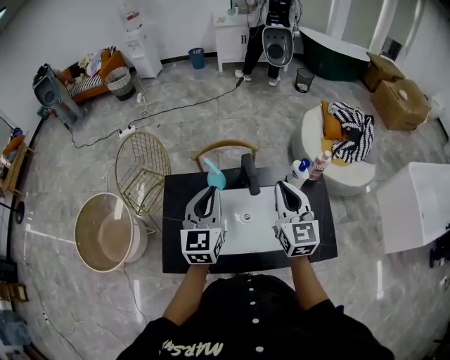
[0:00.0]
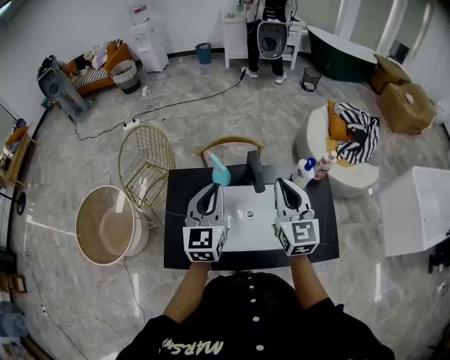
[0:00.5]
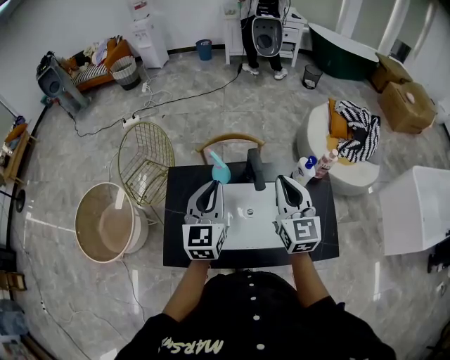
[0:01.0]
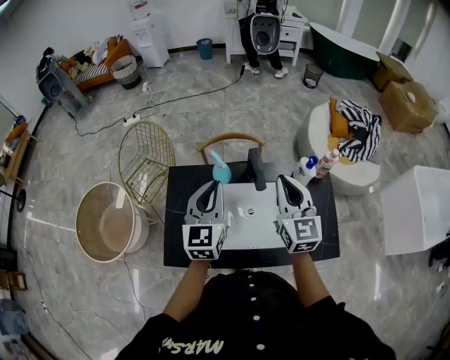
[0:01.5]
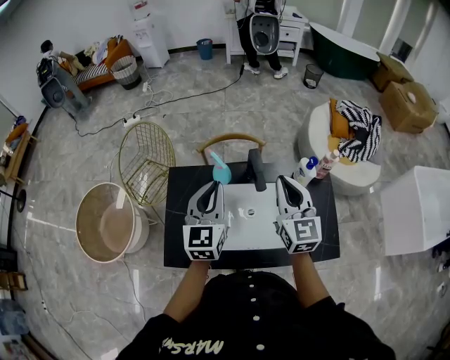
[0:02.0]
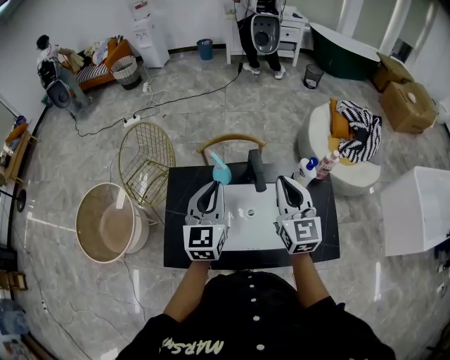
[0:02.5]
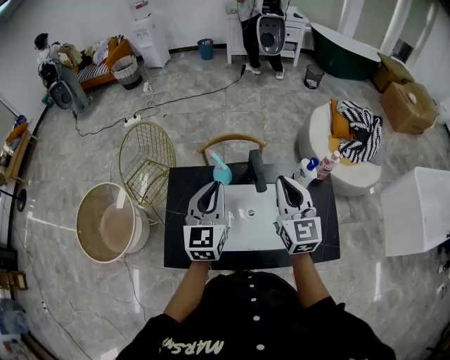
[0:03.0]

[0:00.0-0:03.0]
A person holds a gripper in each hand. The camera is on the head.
0:00.0 to 0:01.5: The grippers move only a little.
0:01.5 to 0:03.0: Neither gripper changes place.

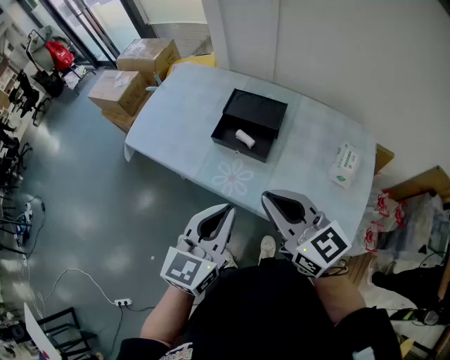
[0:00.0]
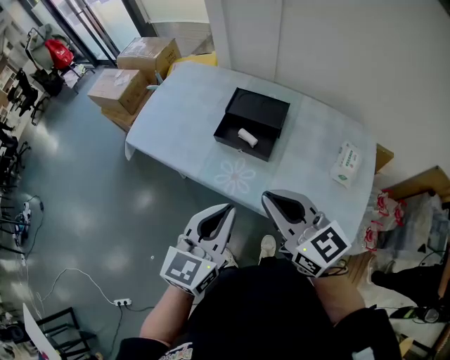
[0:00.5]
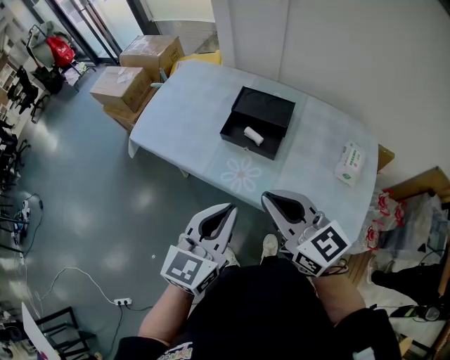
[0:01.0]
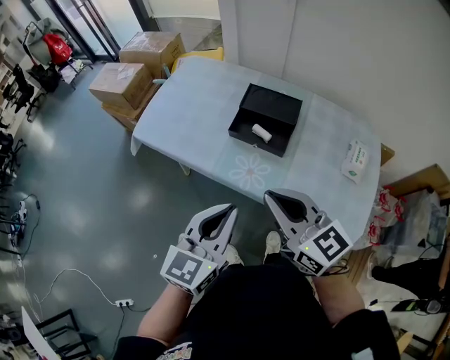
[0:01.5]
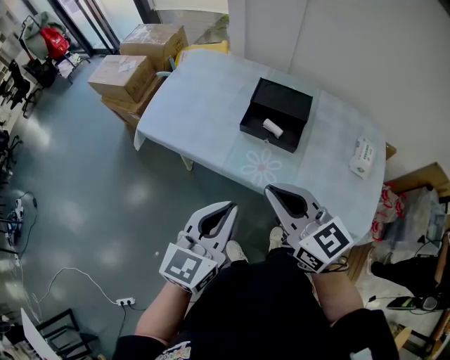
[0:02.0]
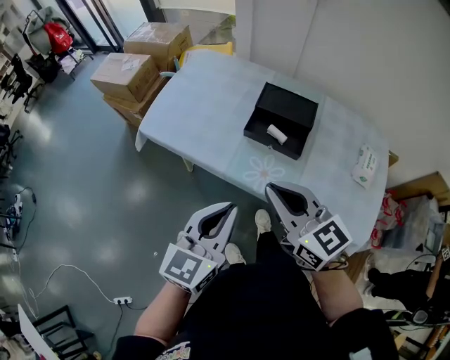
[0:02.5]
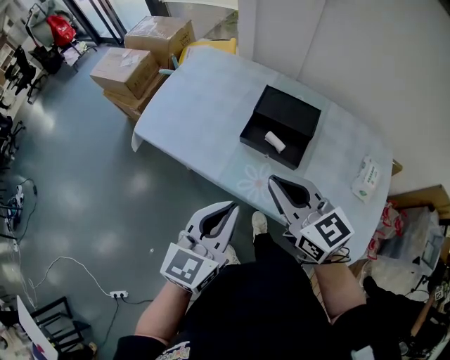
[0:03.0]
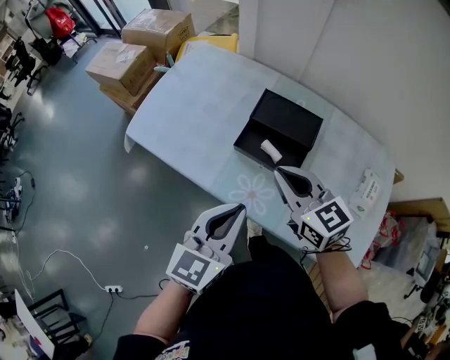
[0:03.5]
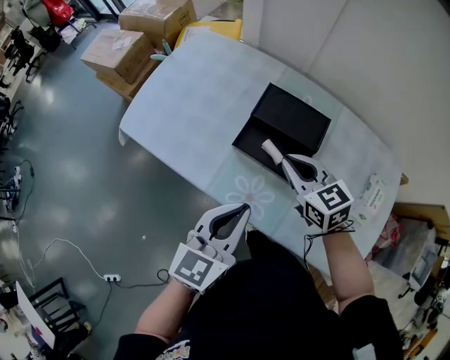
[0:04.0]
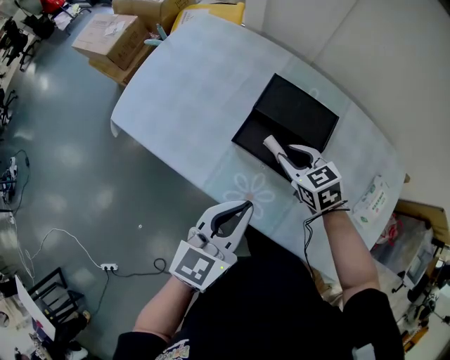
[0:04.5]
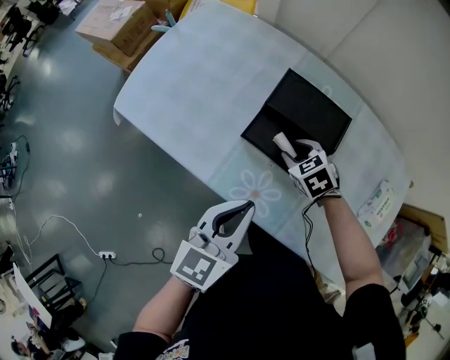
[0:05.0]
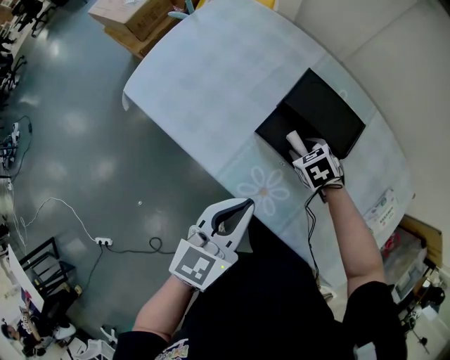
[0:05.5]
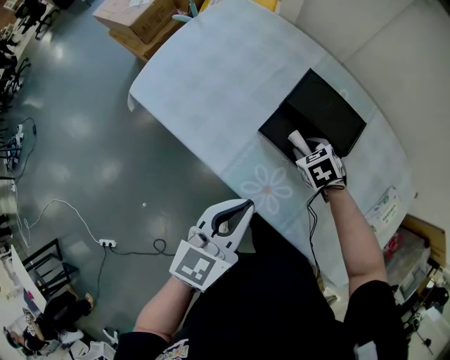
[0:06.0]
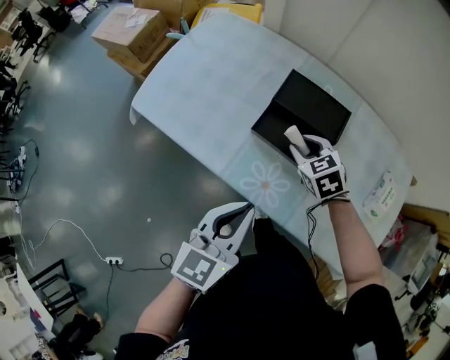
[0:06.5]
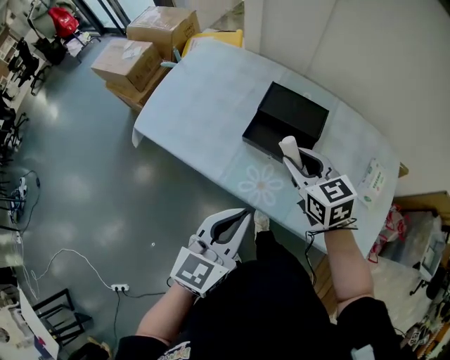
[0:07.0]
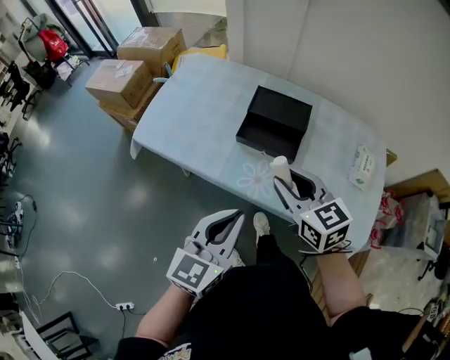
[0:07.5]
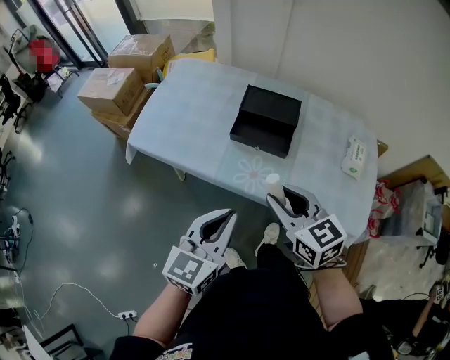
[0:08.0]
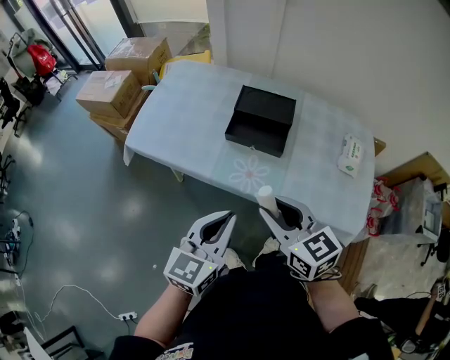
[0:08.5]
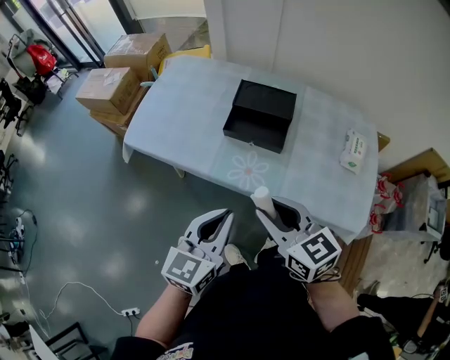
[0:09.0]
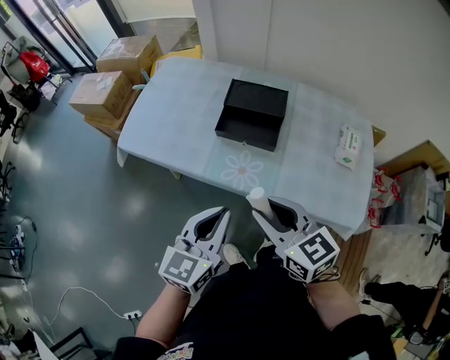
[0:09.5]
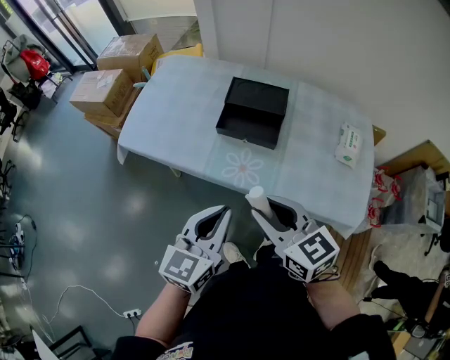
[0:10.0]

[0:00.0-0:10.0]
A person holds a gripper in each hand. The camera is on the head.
0:00.0 to 0:02.0: Both grippers move to the left, some 15 cm.
0:02.0 to 0:04.0: The right gripper goes roughly 30 cm forward, downward and to the right, and changes its angle by about 20 degrees. Meanwhile the left gripper is displaced forward and to the right by about 20 cm.
0:04.0 to 0:06.0: The right gripper is displaced downward by about 20 cm, tips its fingers downward by about 40 degrees, and opens up; the left gripper shifts by approximately 5 cm.
0:06.0 to 0:08.0: The right gripper heads backward and upward, covering some 40 cm, and tips its fingers upward by roughly 50 degrees, while the left gripper shifts some 20 cm backward and upward, and swivels some 20 degrees.
0:08.0 to 0:10.0: The grippers move only a little.

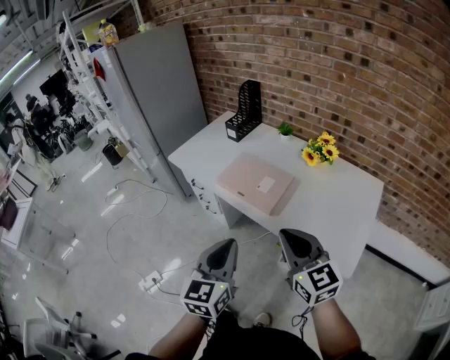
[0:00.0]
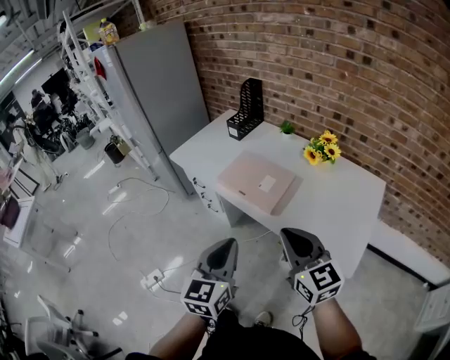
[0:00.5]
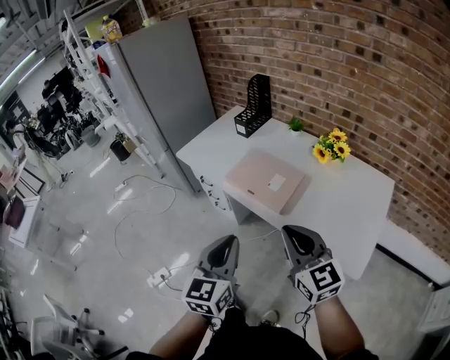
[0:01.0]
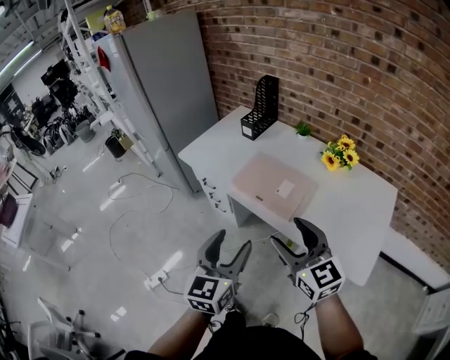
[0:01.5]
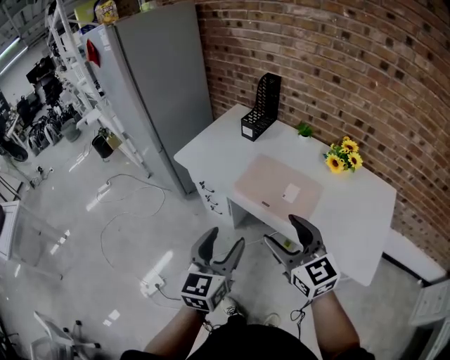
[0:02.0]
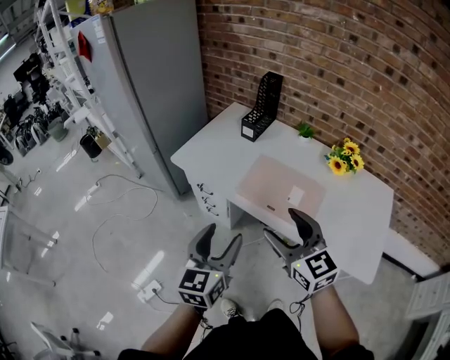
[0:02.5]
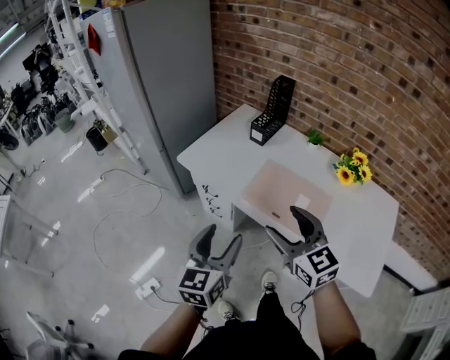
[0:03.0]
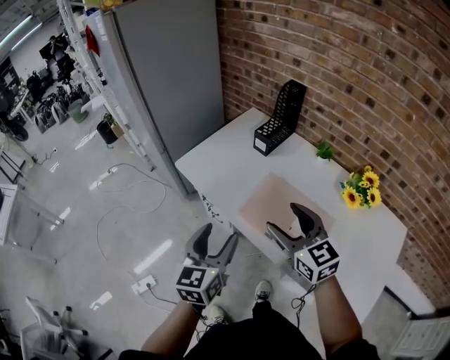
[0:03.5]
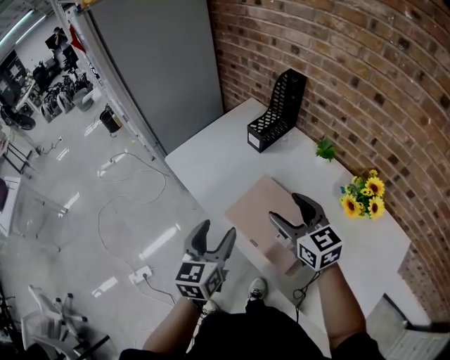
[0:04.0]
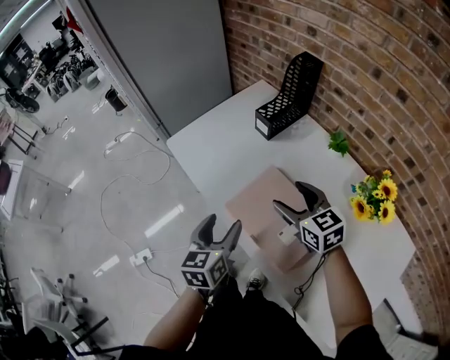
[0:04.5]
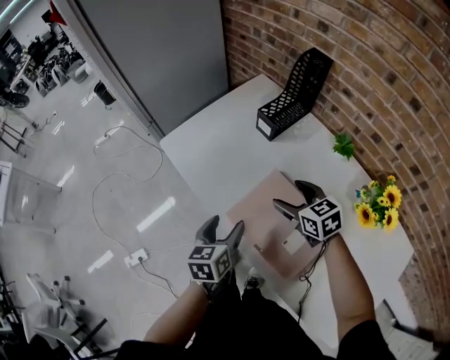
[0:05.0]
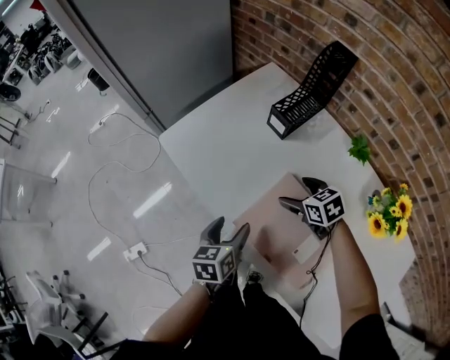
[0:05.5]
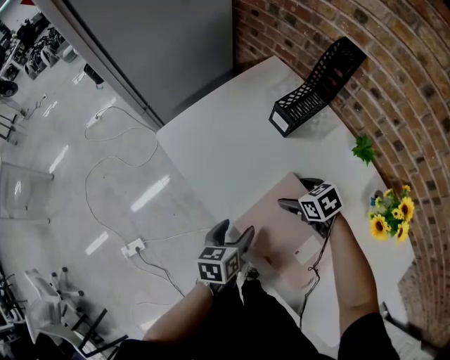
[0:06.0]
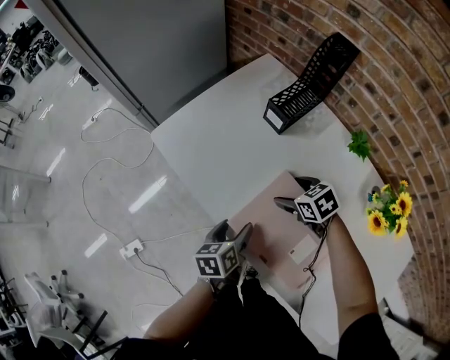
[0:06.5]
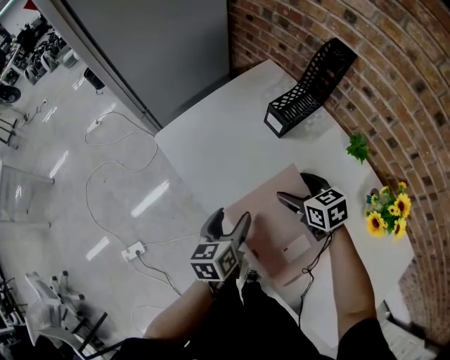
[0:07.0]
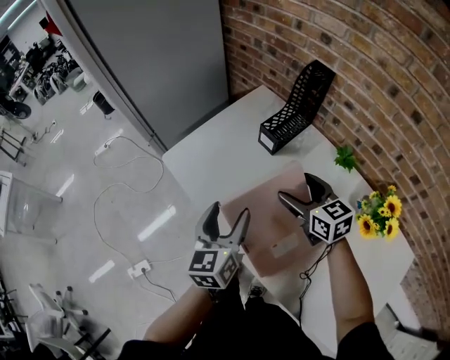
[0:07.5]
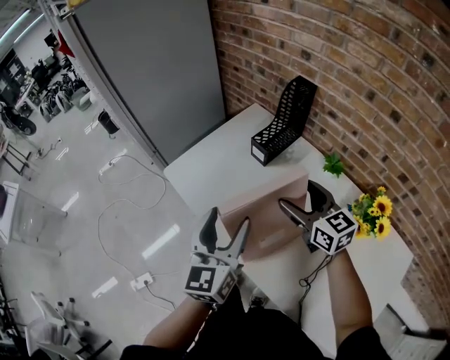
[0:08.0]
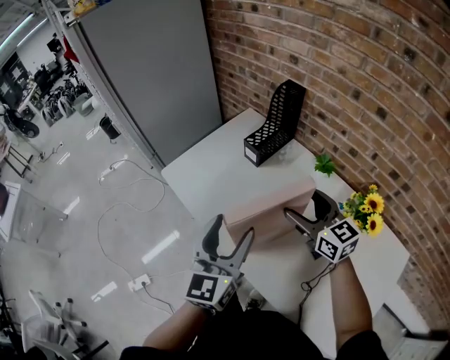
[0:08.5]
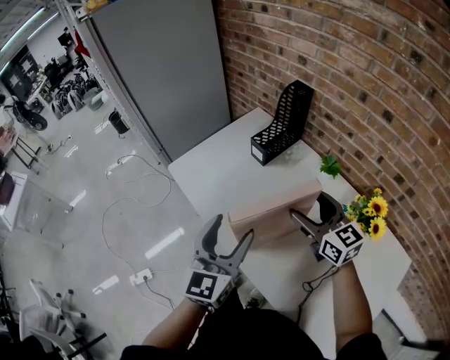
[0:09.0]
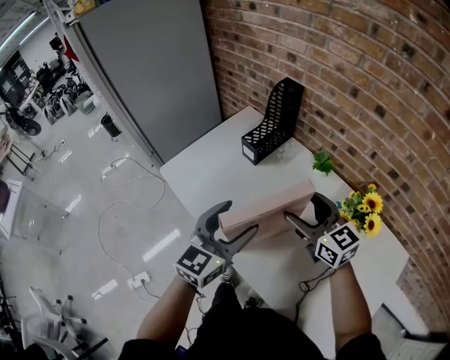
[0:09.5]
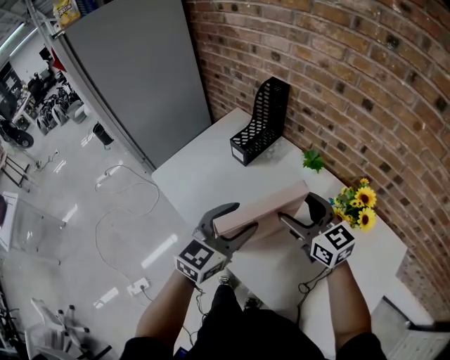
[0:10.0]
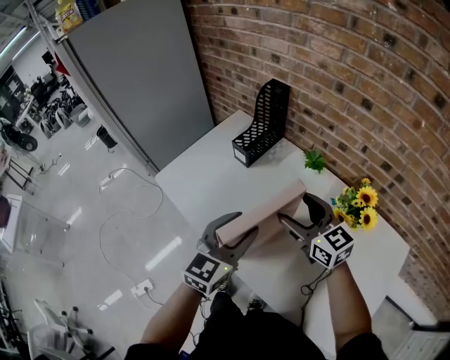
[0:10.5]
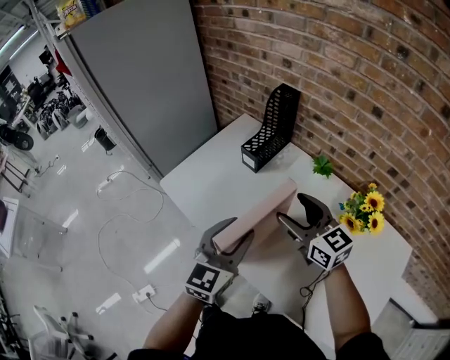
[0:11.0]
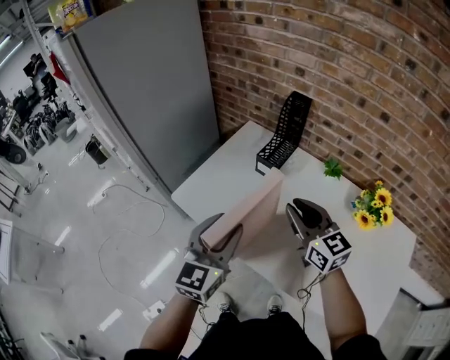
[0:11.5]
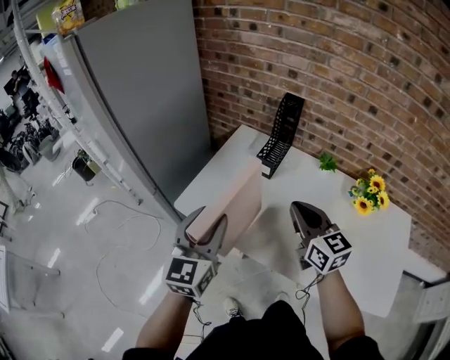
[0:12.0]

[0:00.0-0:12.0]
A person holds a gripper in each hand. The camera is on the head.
0:00.0 to 0:02.0: The left gripper is displaced forward and to the left by approximately 20 cm, and opens. Meanwhile the right gripper is displaced to the left and forward by about 20 cm, and opens.
0:02.0 to 0:04.0: The grippers both shift forward by approximately 25 cm.
0:04.0 to 0:06.0: The left gripper is displaced downward by roughly 20 cm, and changes its angle by roughly 30 degrees. The right gripper is displaced downward and forward by about 30 cm, and tilts its fingers about 40 degrees downward.
0:06.0 to 0:08.0: The two grippers go roughly 25 cm upward. The left gripper tilts its fingers approximately 30 degrees upward. The right gripper angles its fingers upward, by roughly 50 degrees.
0:08.0 to 0:10.0: The right gripper shifts some 10 cm backward and to the right, while the left gripper moves to the right, approximately 10 cm, and swivels about 30 degrees.
0:10.0 to 0:12.0: The left gripper heads to the left, covering roughly 30 cm. The right gripper heads to the left, covering roughly 20 cm, changes its angle by roughly 20 degrees, and closes up.

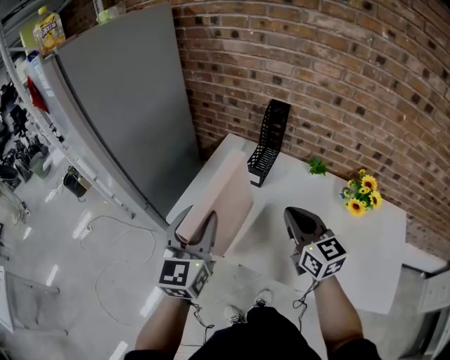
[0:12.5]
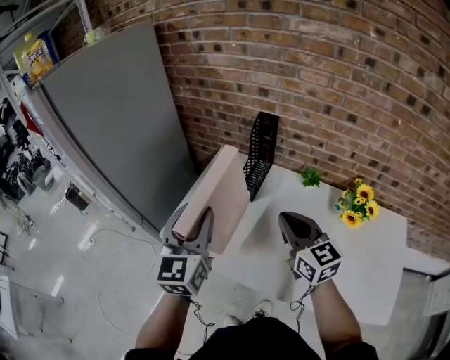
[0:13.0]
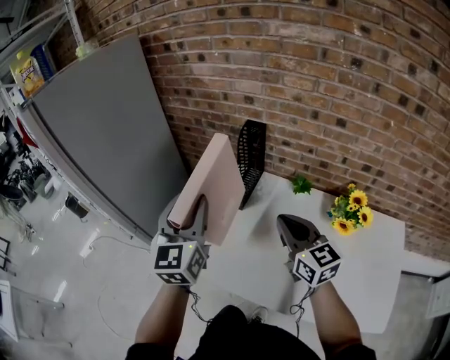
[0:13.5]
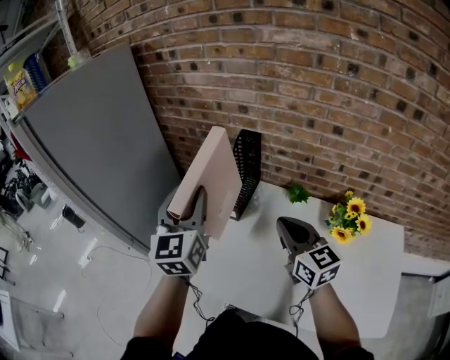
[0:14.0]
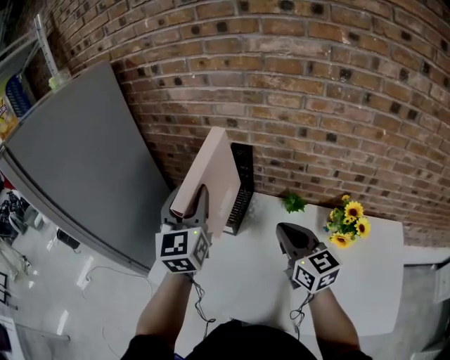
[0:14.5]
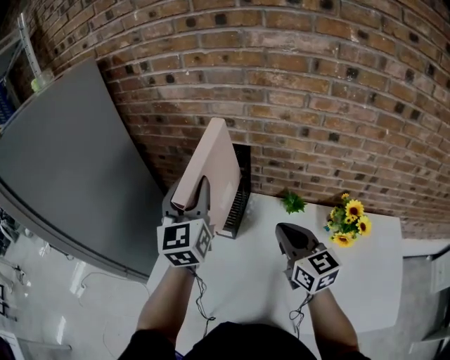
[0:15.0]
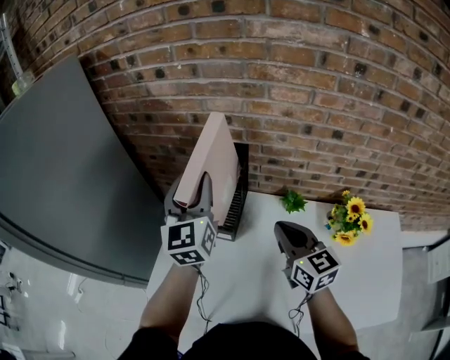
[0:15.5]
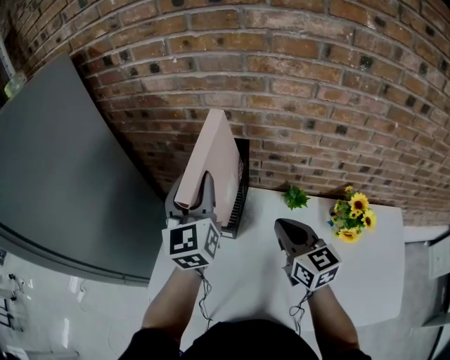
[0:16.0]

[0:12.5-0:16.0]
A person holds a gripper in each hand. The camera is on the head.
0:12.5 to 0:14.5: The left gripper goes about 25 cm forward, to the right and upward; the right gripper goes about 15 cm to the right and forward.
0:14.5 to 0:16.0: Both grippers move forward, approximately 10 cm.
